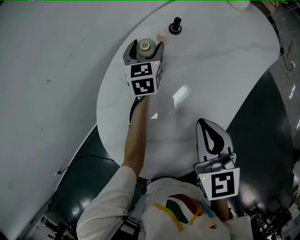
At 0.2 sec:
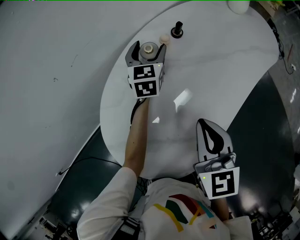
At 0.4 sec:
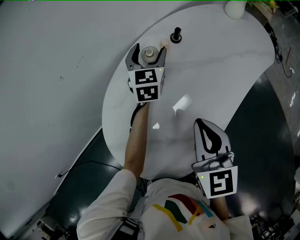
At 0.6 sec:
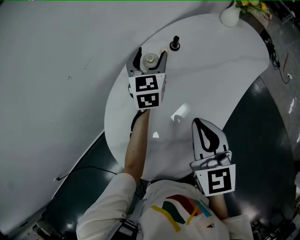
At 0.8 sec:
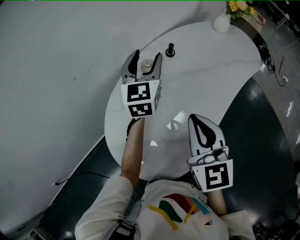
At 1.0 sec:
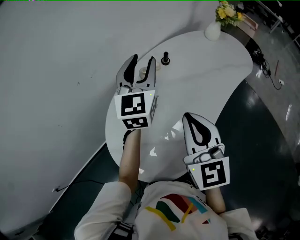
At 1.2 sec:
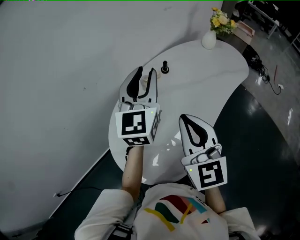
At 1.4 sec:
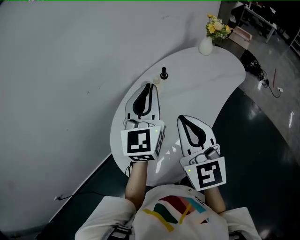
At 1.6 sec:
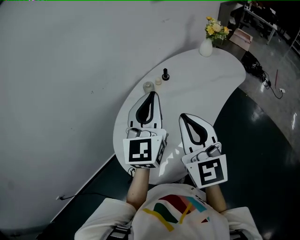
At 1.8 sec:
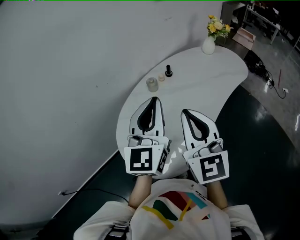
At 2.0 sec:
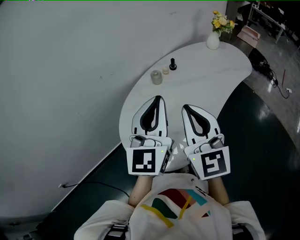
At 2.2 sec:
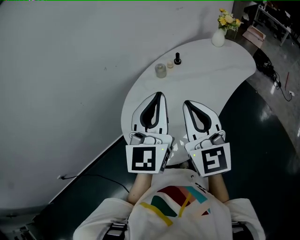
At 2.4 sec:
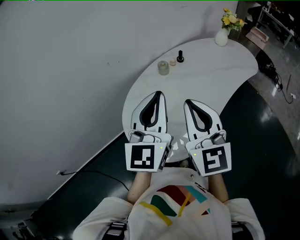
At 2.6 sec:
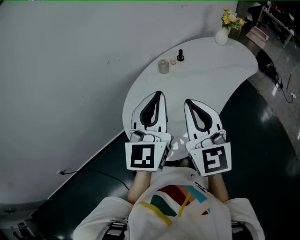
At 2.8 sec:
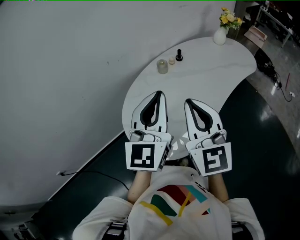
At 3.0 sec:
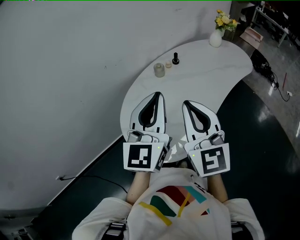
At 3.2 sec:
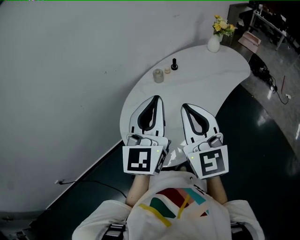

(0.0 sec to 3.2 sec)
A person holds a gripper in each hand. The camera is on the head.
0.0 sec - 1.6 sec: The left gripper moves upward and backward, roughly 40 cm, swivels roughly 30 degrees, and closes its fingers; the right gripper shifts approximately 20 cm upward and backward, and turns by about 30 degrees.
1.6 sec - 3.2 sec: The right gripper shifts some 10 cm backward. The left gripper is displaced backward by roughly 15 cm.

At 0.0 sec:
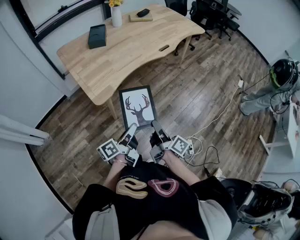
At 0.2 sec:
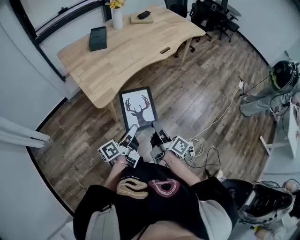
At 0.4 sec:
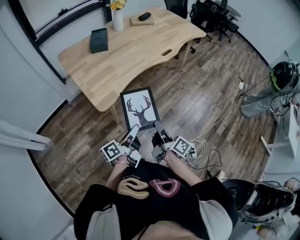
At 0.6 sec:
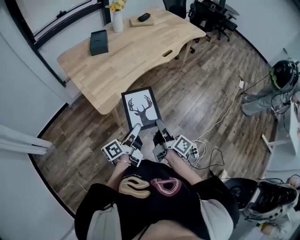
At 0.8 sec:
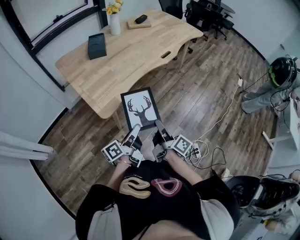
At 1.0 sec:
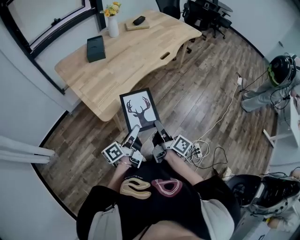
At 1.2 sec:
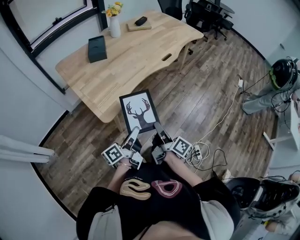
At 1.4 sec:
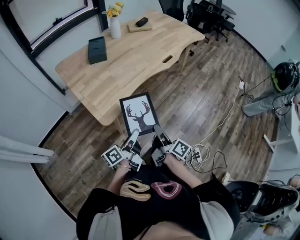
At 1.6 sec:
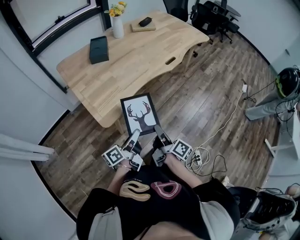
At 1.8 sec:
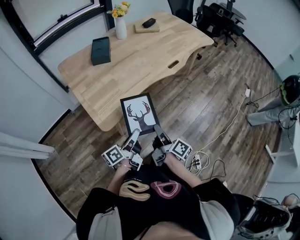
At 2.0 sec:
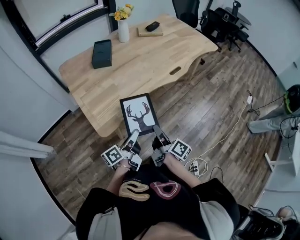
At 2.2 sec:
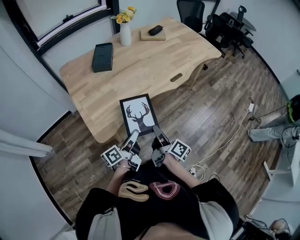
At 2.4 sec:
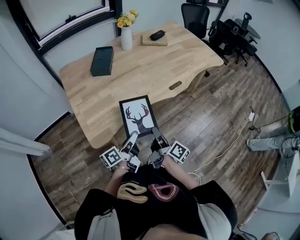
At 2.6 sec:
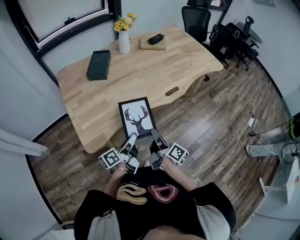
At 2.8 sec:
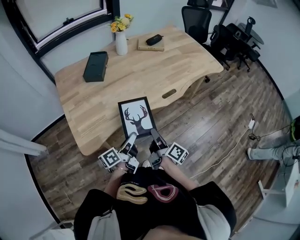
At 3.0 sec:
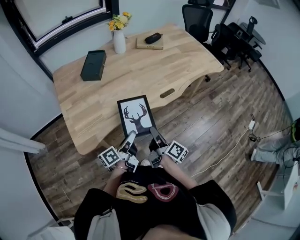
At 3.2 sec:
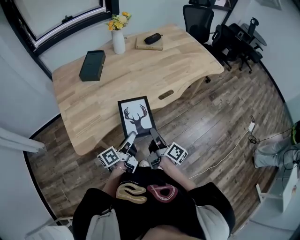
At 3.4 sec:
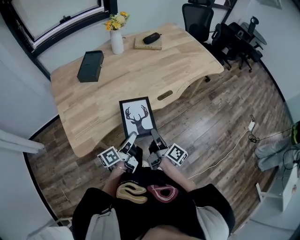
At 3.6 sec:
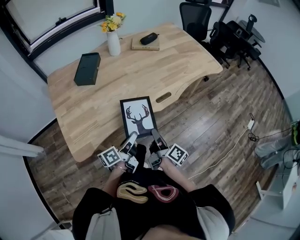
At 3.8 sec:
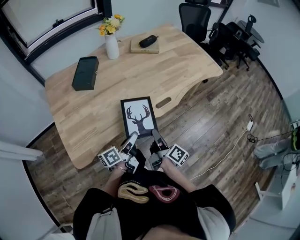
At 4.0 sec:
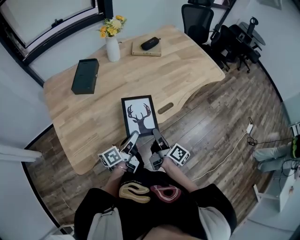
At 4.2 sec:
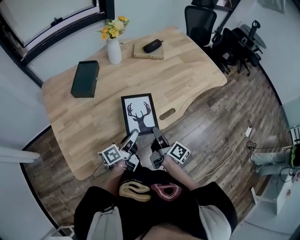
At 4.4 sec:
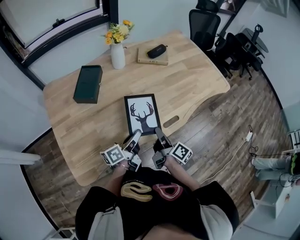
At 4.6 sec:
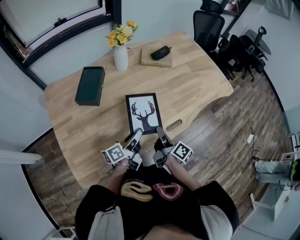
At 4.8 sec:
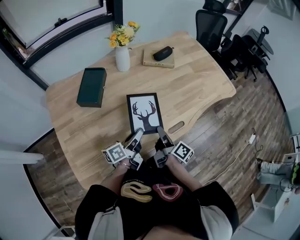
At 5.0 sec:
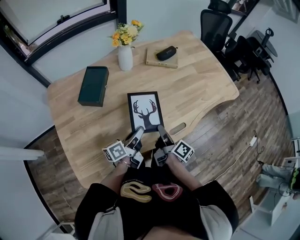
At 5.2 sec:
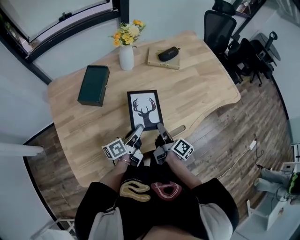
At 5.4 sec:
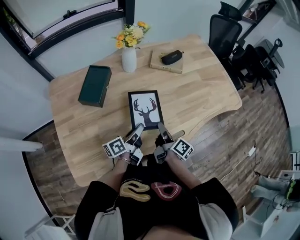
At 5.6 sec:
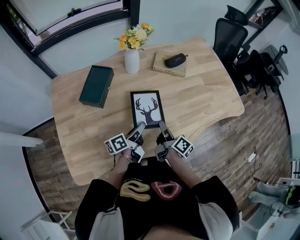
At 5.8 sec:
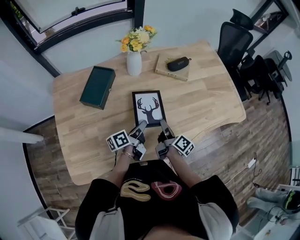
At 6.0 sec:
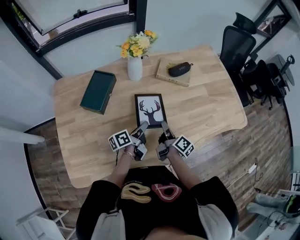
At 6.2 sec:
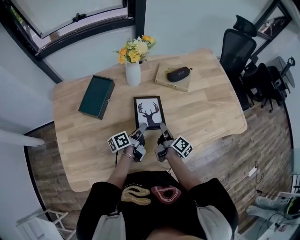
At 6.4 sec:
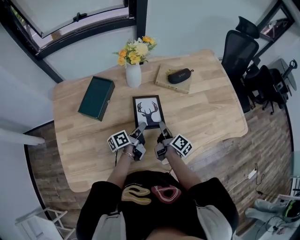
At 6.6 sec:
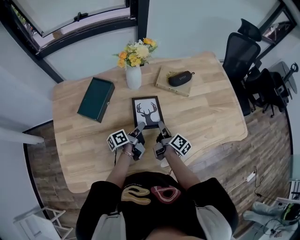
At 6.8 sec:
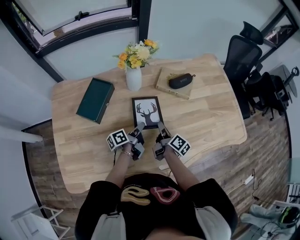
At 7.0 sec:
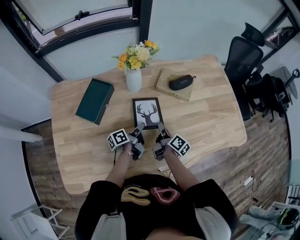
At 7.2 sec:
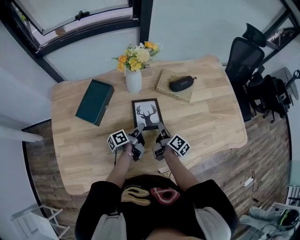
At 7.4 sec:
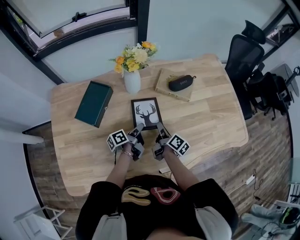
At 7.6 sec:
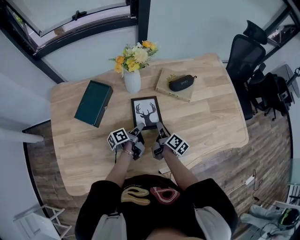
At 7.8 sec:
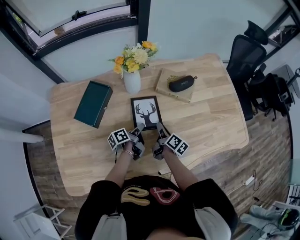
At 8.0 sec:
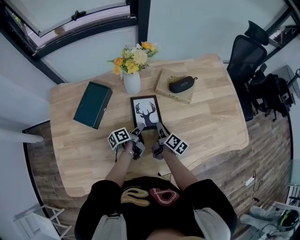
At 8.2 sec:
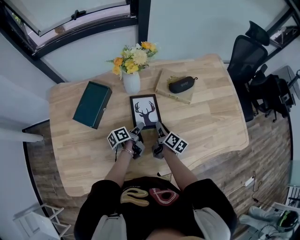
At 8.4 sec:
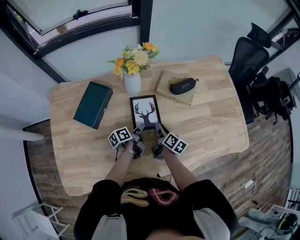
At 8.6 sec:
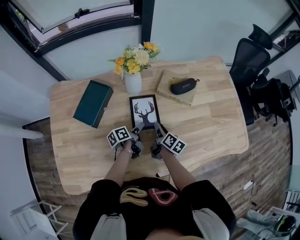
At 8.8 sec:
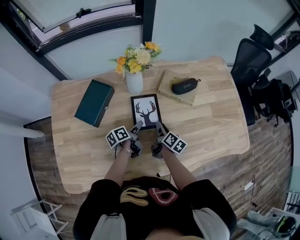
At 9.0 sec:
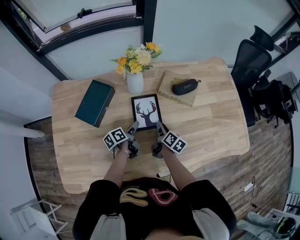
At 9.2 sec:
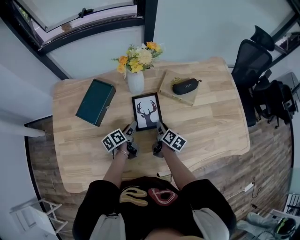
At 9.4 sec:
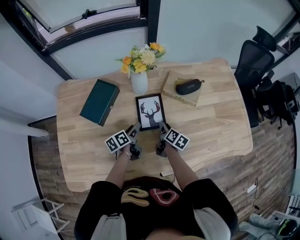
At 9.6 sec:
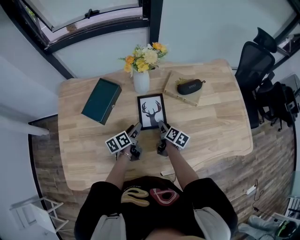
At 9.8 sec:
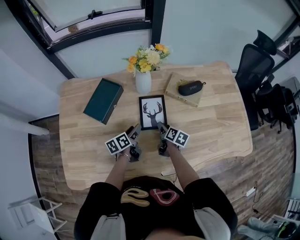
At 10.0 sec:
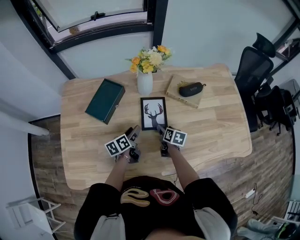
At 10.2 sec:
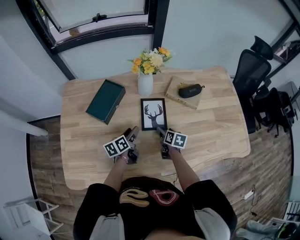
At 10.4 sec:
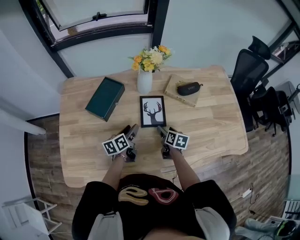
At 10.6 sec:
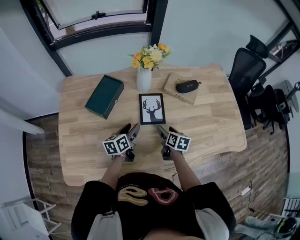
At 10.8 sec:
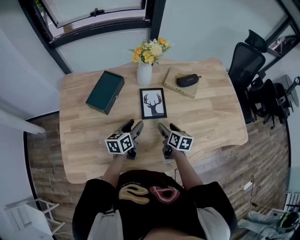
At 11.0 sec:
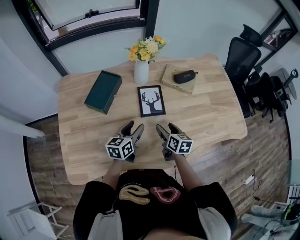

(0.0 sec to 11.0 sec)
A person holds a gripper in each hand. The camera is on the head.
0.0 sec - 1.6 sec: The two grippers go some 10 cm forward.
1.6 sec - 3.2 sec: Both grippers move forward and to the right, roughly 30 cm.
3.2 sec - 4.8 sec: Both grippers move forward, about 25 cm.
4.8 sec - 6.2 sec: Both grippers move forward, roughly 20 cm.
6.2 sec - 7.8 sec: Both grippers travel together forward and downward, approximately 10 cm.
7.8 sec - 9.4 sec: The left gripper moves to the left, about 5 cm, rotates some 20 degrees, and opens its fingers.
9.4 sec - 11.0 sec: The right gripper goes about 15 cm backward and upward, rotates approximately 30 degrees, and opens its fingers, while the left gripper travels upward and backward by some 15 cm, and rotates roughly 40 degrees.

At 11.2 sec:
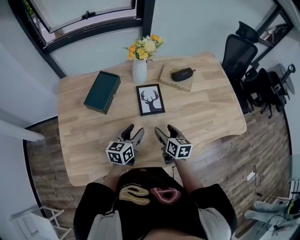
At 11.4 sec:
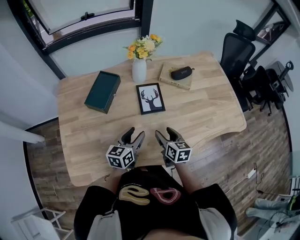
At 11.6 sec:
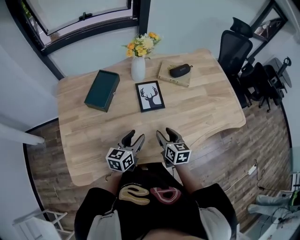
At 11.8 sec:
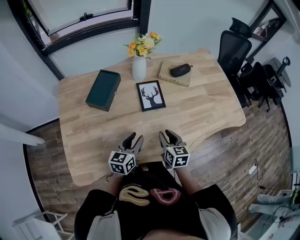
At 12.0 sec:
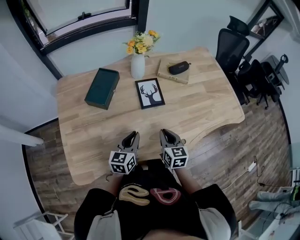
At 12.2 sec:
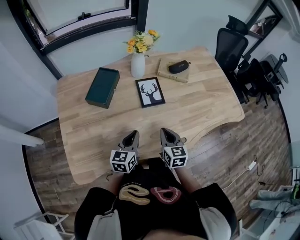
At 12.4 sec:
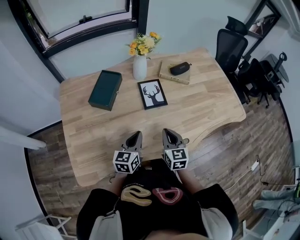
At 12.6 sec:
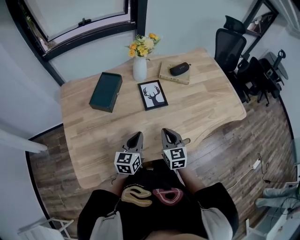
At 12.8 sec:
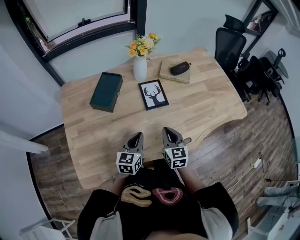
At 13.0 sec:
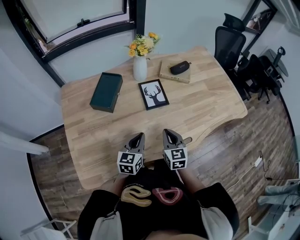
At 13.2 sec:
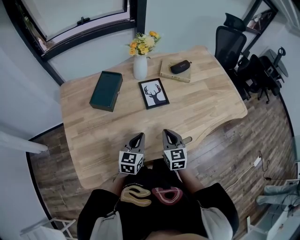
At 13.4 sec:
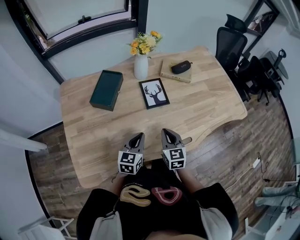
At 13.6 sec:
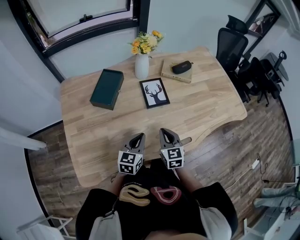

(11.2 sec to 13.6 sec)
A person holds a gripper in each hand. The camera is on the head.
11.2 sec - 12.4 sec: The grippers both shift backward by about 10 cm. The left gripper closes; the right gripper swivels approximately 20 degrees, and closes up.
12.4 sec - 13.6 sec: There are only small adjustments of the grippers.

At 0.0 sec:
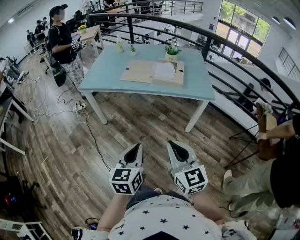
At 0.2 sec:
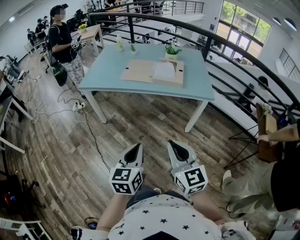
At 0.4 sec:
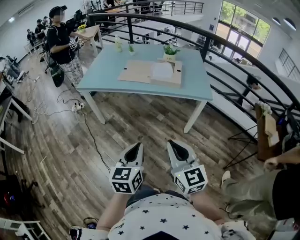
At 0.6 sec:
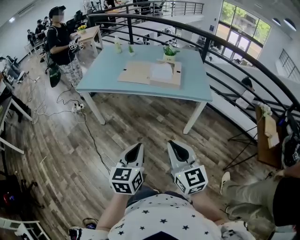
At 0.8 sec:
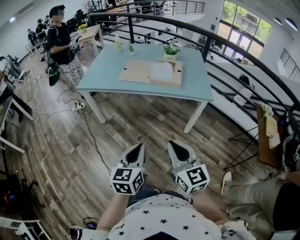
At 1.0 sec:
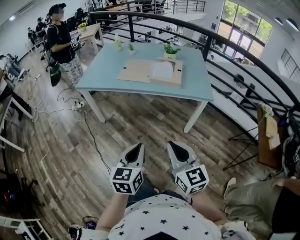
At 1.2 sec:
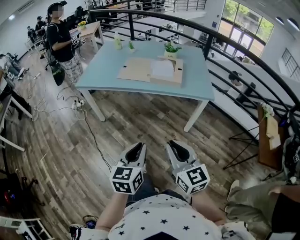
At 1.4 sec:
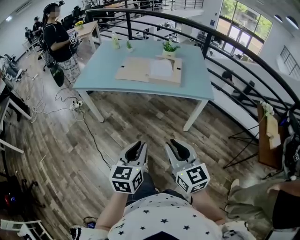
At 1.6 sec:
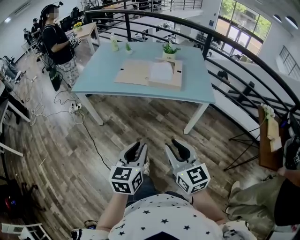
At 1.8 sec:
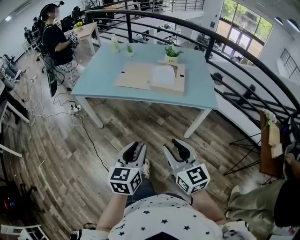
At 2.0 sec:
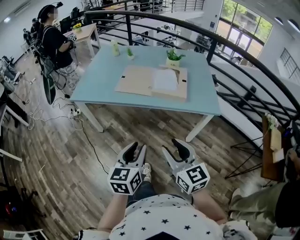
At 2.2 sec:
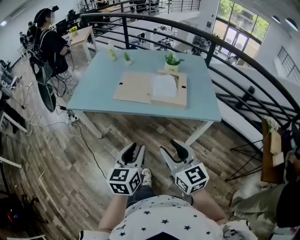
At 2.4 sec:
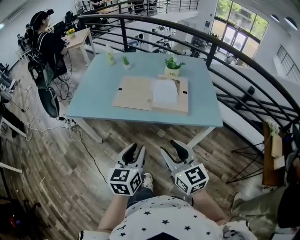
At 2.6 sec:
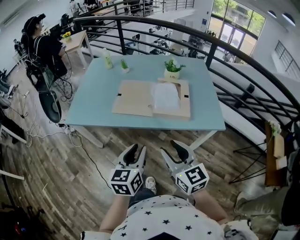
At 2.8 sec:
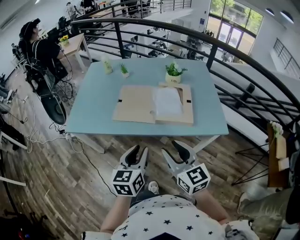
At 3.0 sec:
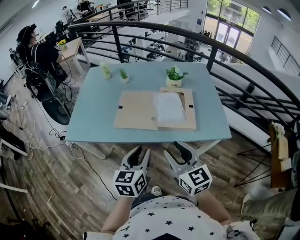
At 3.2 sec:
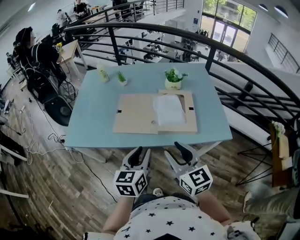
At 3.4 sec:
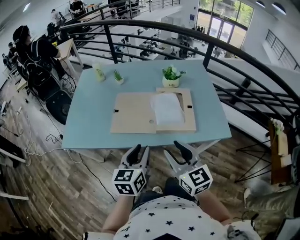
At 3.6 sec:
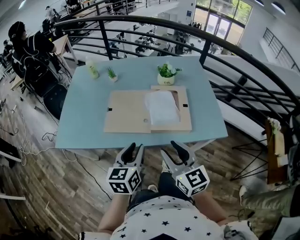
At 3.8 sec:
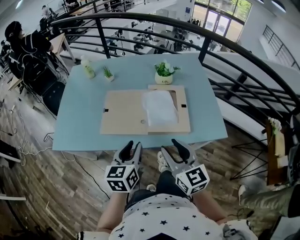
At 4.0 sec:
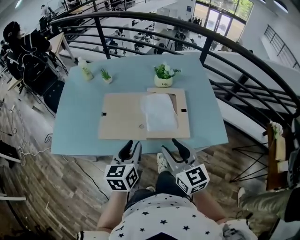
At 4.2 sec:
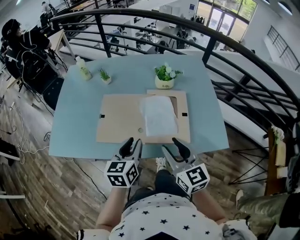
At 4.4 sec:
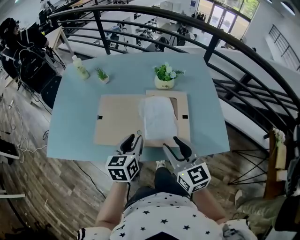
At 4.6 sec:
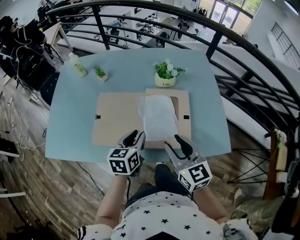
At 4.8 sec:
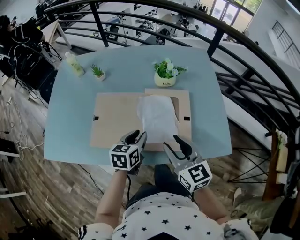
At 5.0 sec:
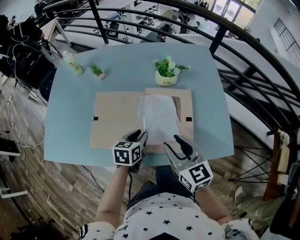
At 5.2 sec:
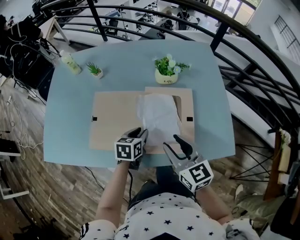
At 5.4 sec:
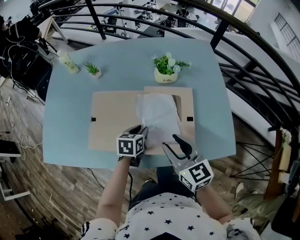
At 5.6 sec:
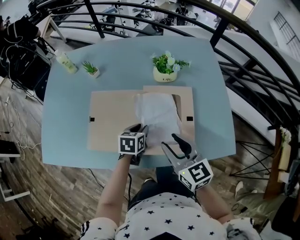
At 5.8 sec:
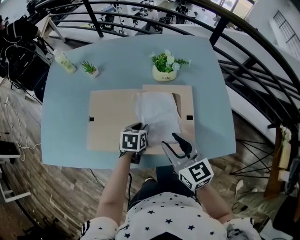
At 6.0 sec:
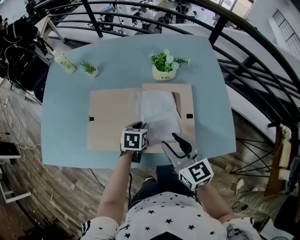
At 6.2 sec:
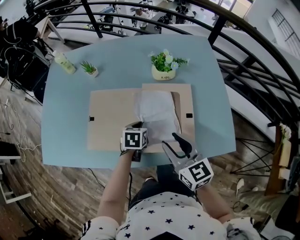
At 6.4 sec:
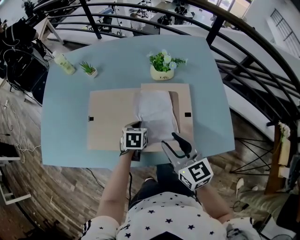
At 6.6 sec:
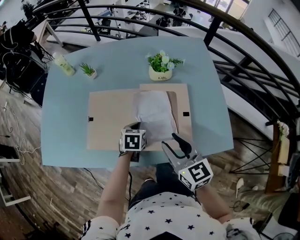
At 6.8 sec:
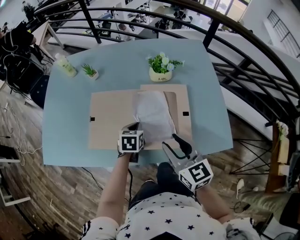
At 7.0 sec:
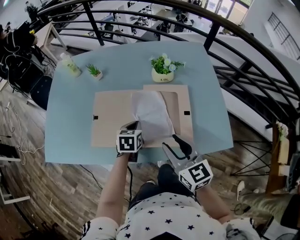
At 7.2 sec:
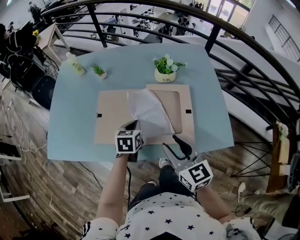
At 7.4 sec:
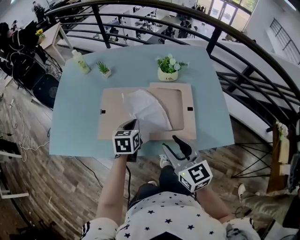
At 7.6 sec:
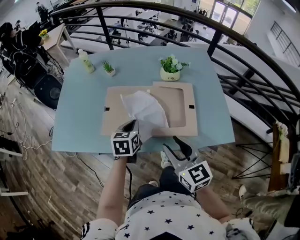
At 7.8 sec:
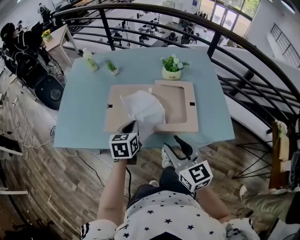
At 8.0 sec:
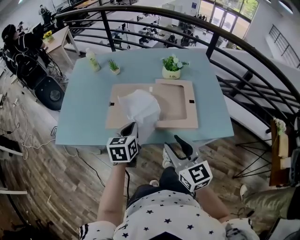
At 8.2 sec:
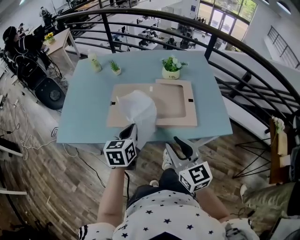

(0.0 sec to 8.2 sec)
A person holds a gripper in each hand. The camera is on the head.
0.0 sec - 1.6 sec: The right gripper moves forward, roughly 5 cm, while the left gripper travels forward and to the right by roughly 10 cm, and opens up.
1.6 sec - 3.2 sec: The grippers both shift forward by about 40 cm.
3.2 sec - 5.0 sec: The left gripper moves forward and downward, about 30 cm, and rotates approximately 20 degrees. Meanwhile the right gripper is displaced forward by roughly 20 cm.
5.0 sec - 6.6 sec: The left gripper goes approximately 5 cm downward, and closes.
6.6 sec - 8.2 sec: The right gripper travels backward by roughly 20 cm; the left gripper travels backward, upward and to the left by some 30 cm, and swivels approximately 30 degrees.
